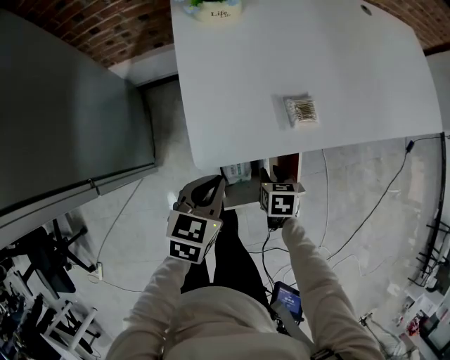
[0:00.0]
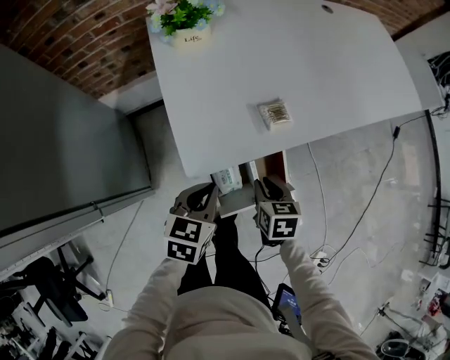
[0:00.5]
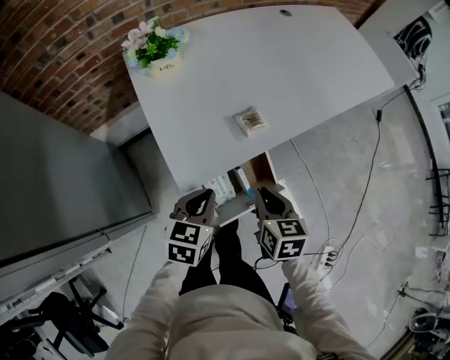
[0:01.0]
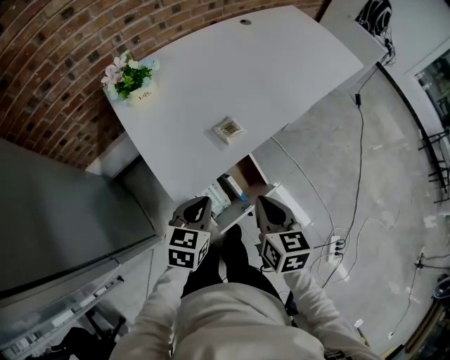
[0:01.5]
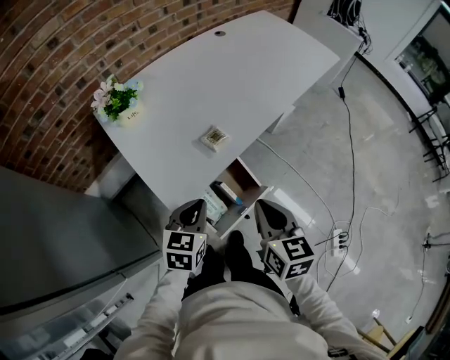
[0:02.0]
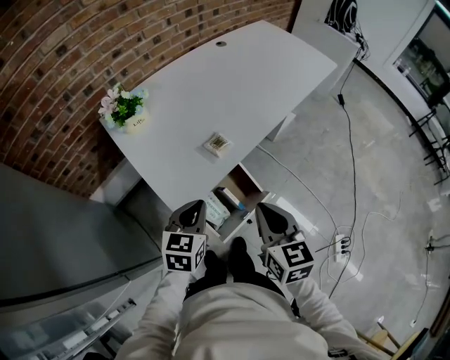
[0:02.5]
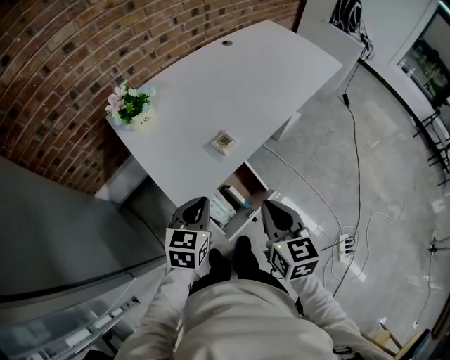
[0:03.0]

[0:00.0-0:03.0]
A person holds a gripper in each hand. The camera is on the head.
0.0 to 1.5 s: The left gripper is displaced upward by approximately 5 cm, and rotates roughly 20 degrees, while the right gripper moves upward, approximately 25 cm, turns by about 40 degrees, and closes its fingers.
1.5 to 3.0 s: The grippers both shift upward by roughly 5 cm.

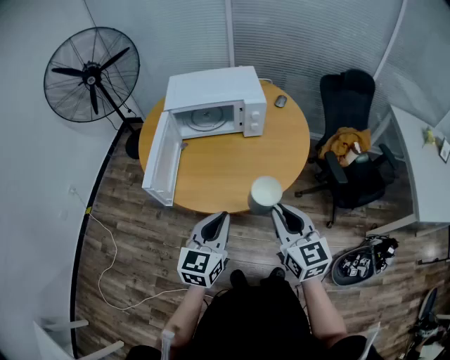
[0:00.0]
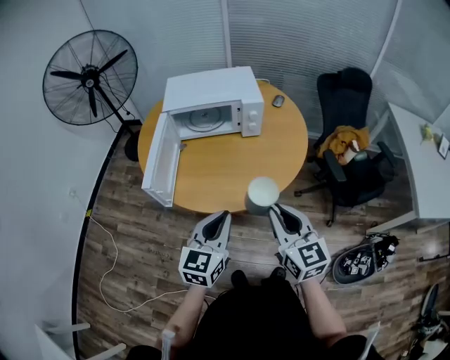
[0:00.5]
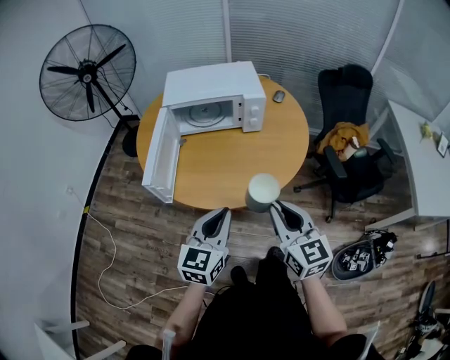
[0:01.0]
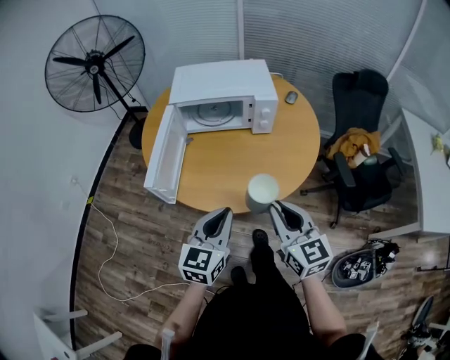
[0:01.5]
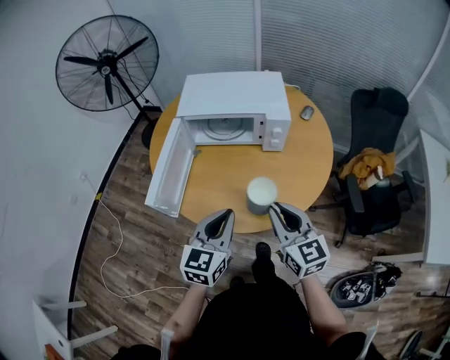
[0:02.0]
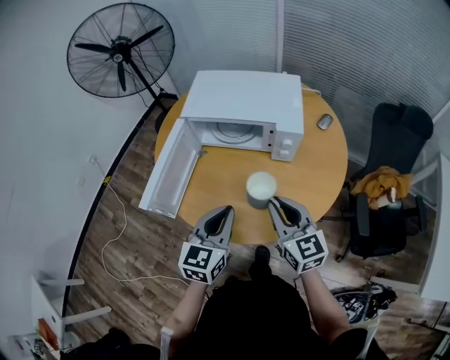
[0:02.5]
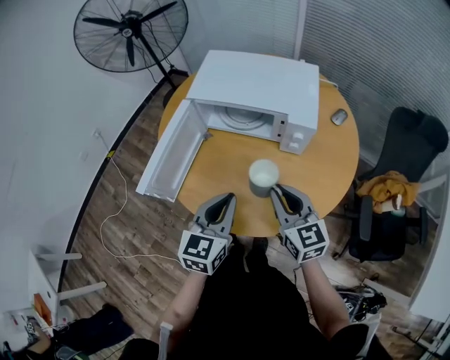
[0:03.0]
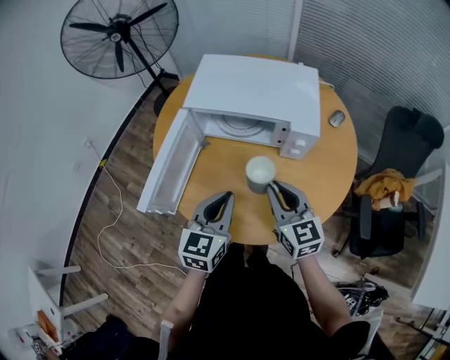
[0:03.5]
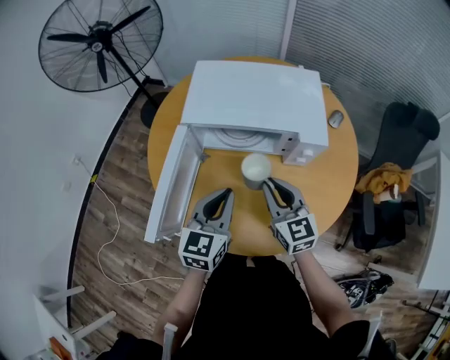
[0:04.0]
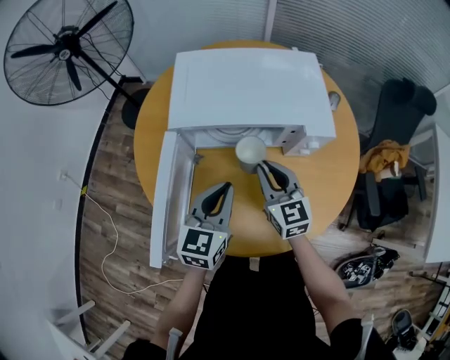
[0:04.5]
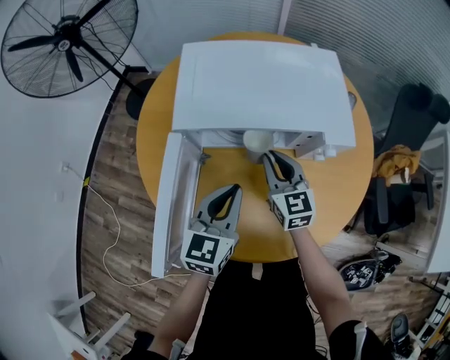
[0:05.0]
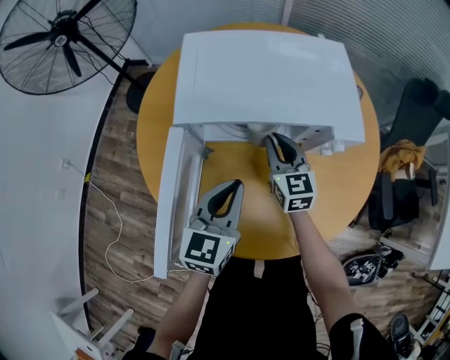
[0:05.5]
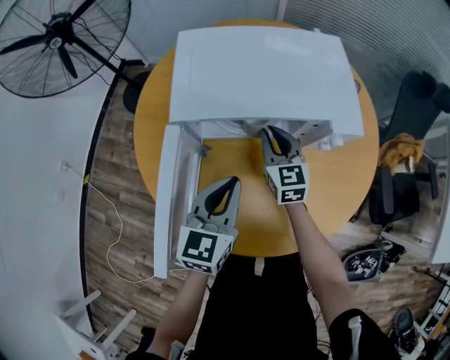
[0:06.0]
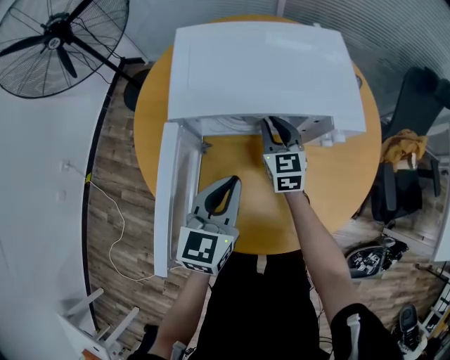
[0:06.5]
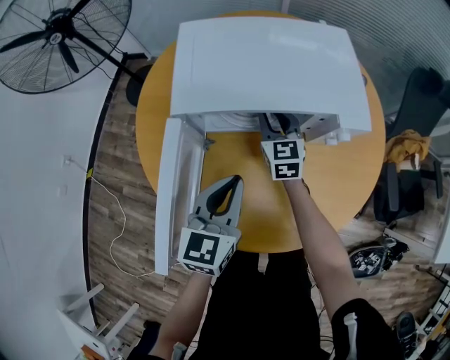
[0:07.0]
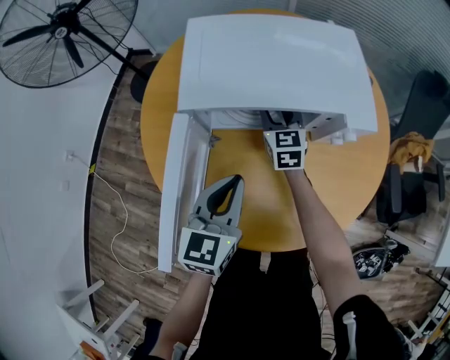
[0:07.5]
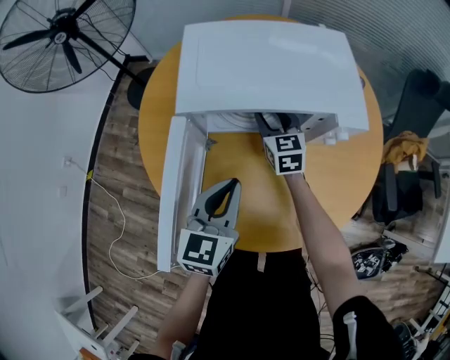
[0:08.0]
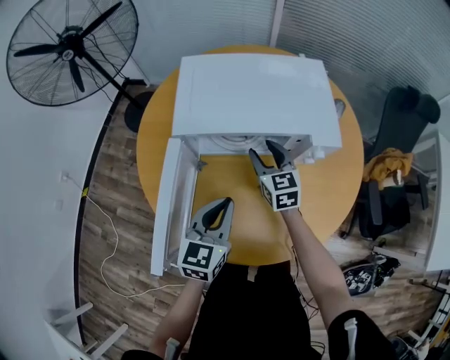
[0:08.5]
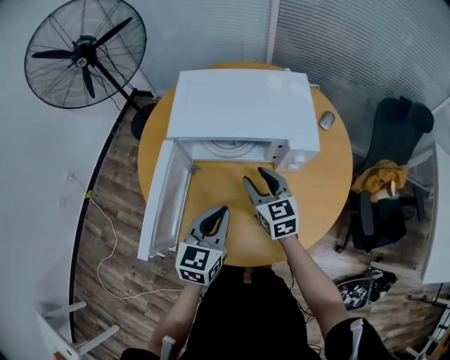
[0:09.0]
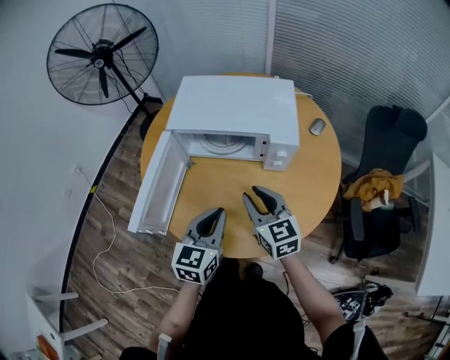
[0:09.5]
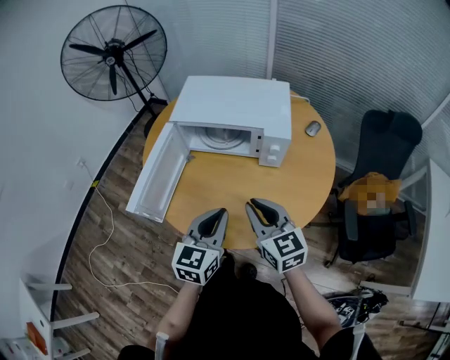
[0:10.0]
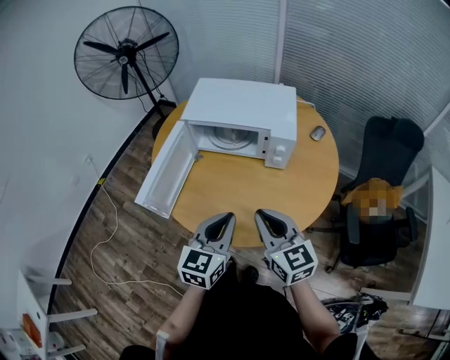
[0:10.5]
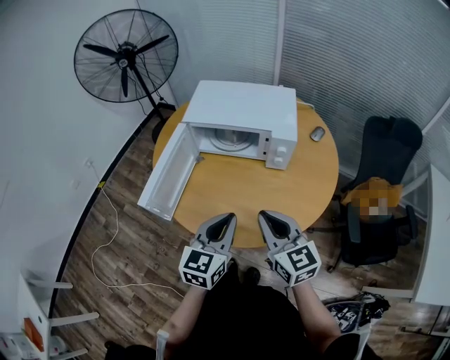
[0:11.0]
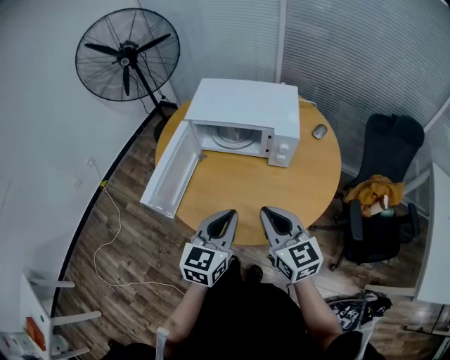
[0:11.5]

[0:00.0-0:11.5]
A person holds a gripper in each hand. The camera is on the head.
0.0 to 2.0 s: Both grippers move forward, approximately 10 cm.
2.0 to 4.0 s: Both grippers travel together forward, about 20 cm.
4.0 to 6.0 s: The left gripper moves forward and downward, roughly 10 cm, while the right gripper is displaced forward and downward by some 20 cm.
6.0 to 7.5 s: The right gripper is displaced forward by roughly 5 cm, and opens its fingers.
7.5 to 9.5 s: The right gripper moves backward and upward, roughly 30 cm, and rotates roughly 20 degrees. Meanwhile the left gripper travels backward, to the right and upward by some 15 cm.
9.5 to 11.5 s: The right gripper heads backward and upward, covering approximately 15 cm, and closes; the left gripper goes some 10 cm backward.

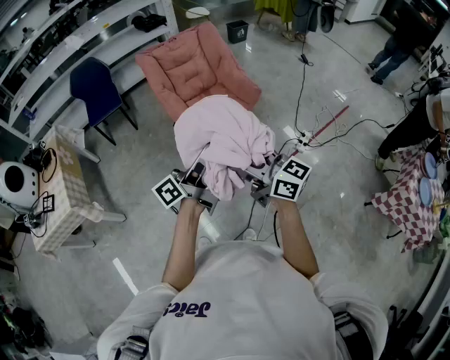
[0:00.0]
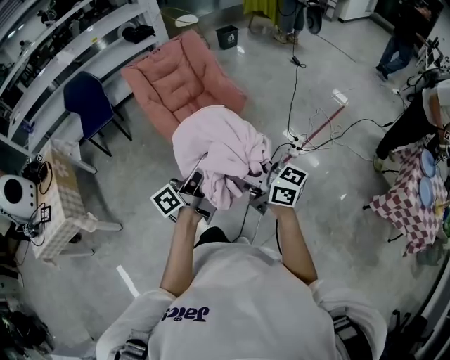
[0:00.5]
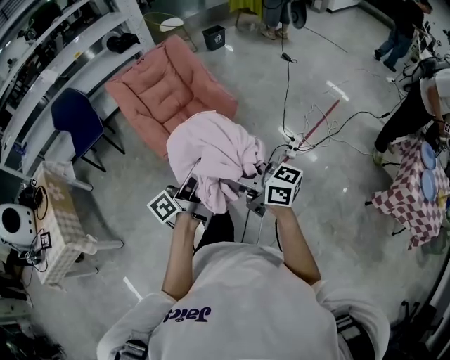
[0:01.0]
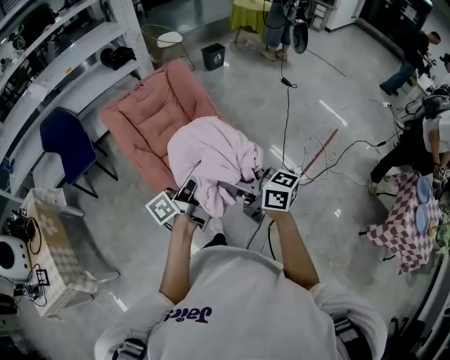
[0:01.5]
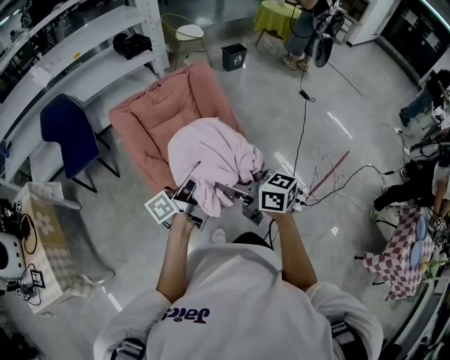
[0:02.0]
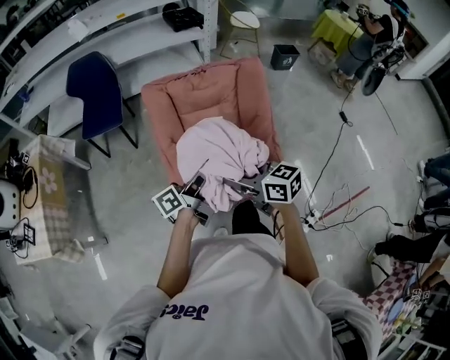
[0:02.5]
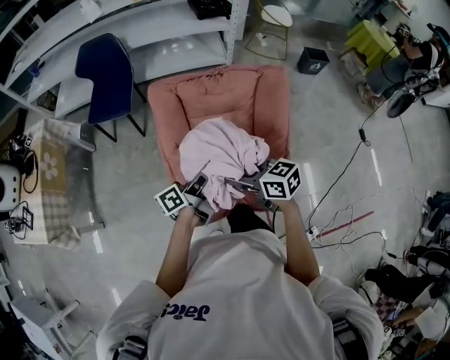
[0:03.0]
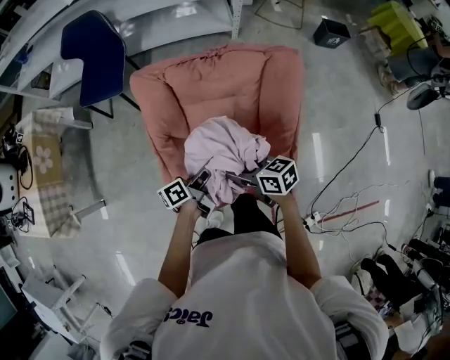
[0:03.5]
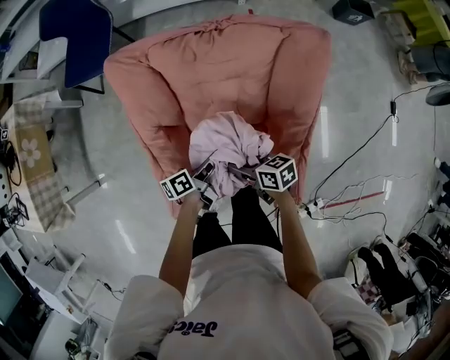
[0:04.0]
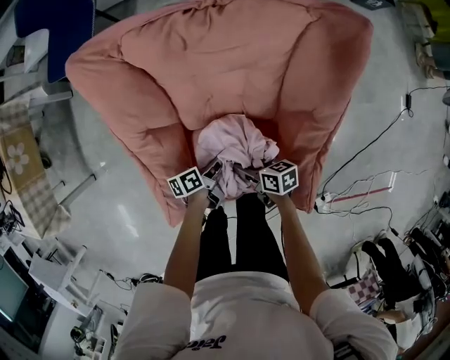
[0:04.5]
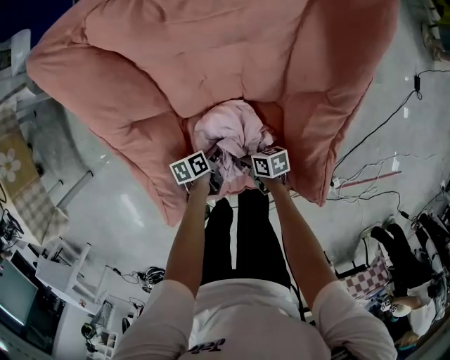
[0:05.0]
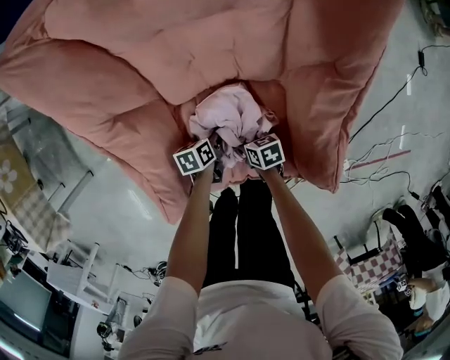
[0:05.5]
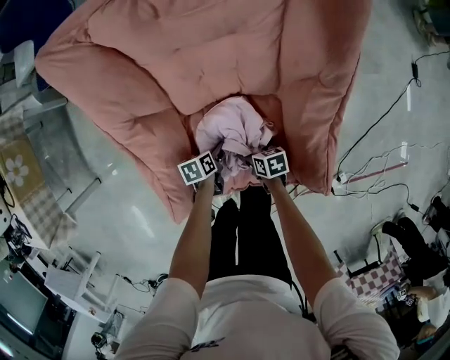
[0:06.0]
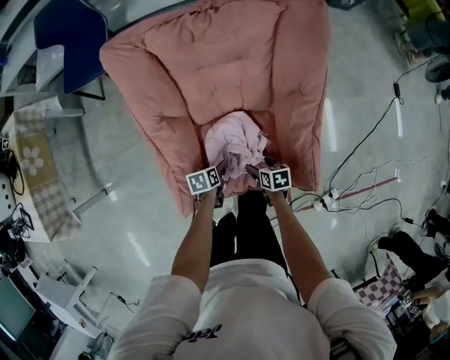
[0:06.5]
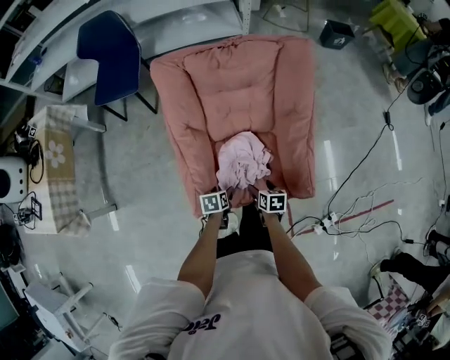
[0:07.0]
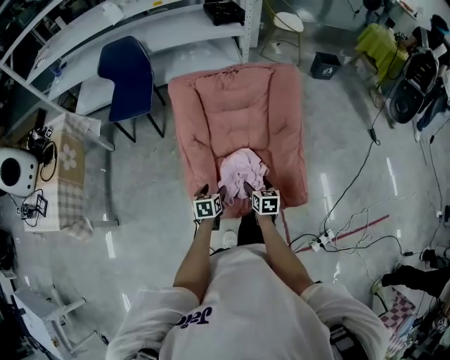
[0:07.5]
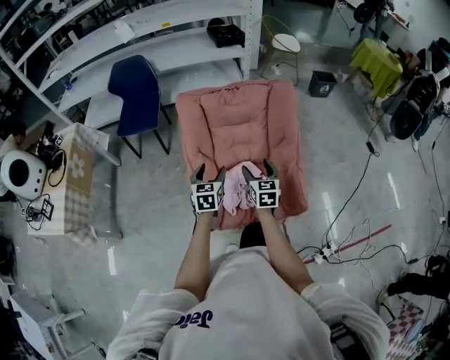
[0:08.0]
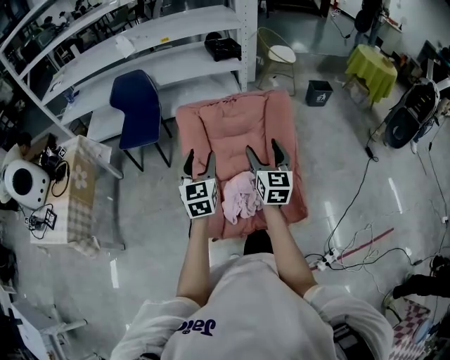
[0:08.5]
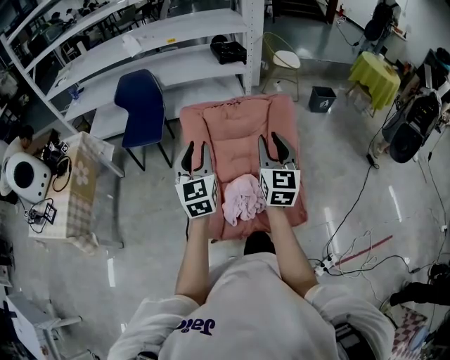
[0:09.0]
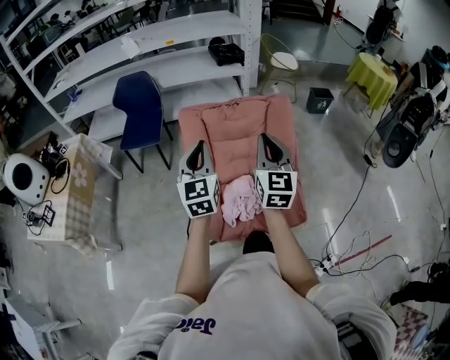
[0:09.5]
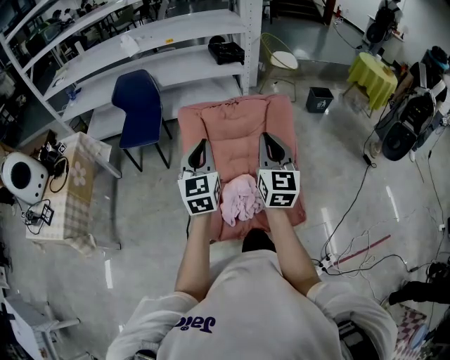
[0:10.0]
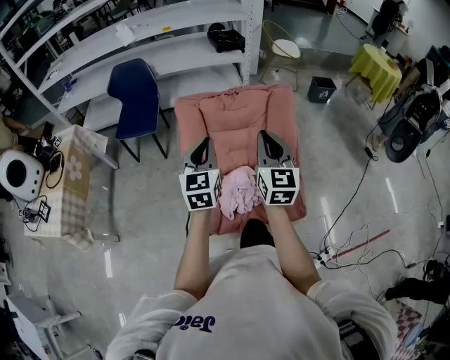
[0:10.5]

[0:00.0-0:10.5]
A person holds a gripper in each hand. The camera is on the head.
0.0 to 2.0 s: Both grippers are carried forward, some 40 cm.
2.0 to 4.0 s: Both grippers travel together downward, some 40 cm. The left gripper points its fingers about 40 degrees further downward. Meanwhile the right gripper swivels approximately 50 degrees.
4.0 to 6.5 s: Both grippers move downward, approximately 15 cm. The right gripper turns by roughly 30 degrees. The left gripper angles its fingers downward, by some 40 degrees.
6.5 to 8.5 s: Both grippers move upward, about 50 cm. The left gripper points its fingers roughly 50 degrees further upward, while the right gripper angles its fingers upward, by roughly 50 degrees.
8.5 to 10.5 s: The left gripper closes up. Meanwhile the right gripper is displaced upward by roughly 5 cm, and closes.

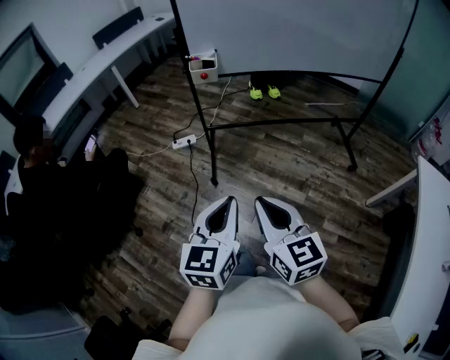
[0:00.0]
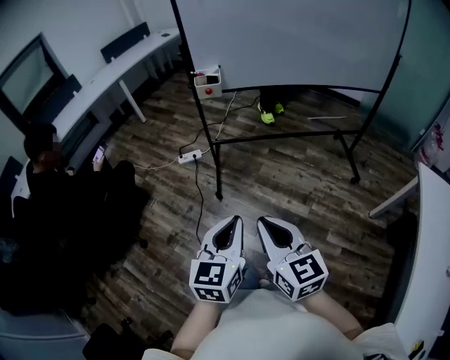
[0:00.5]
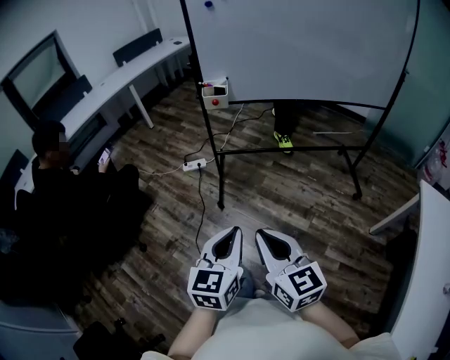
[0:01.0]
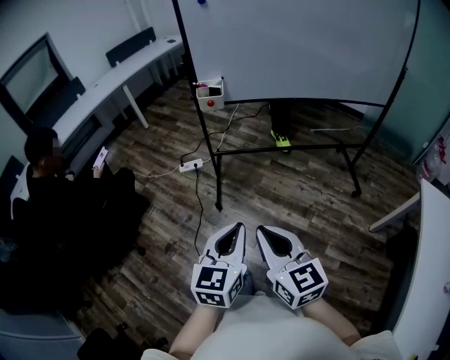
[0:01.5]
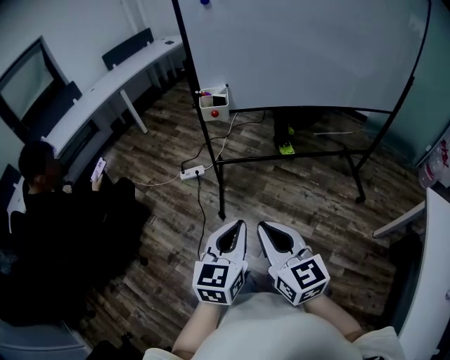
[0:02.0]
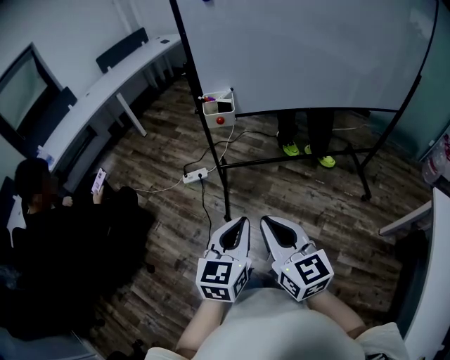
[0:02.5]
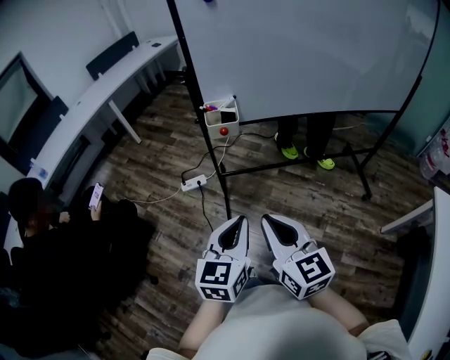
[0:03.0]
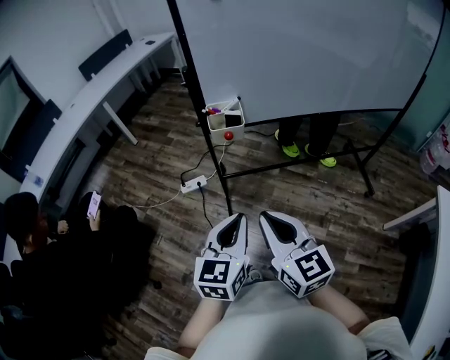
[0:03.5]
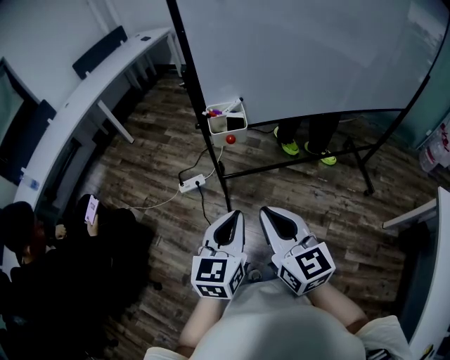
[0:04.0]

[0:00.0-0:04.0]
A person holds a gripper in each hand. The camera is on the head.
0.0 to 2.0 s: Both grippers move forward, about 10 cm.
2.0 to 4.0 s: The right gripper moves forward, some 25 cm. Meanwhile the left gripper shifts approximately 25 cm forward and to the left.
